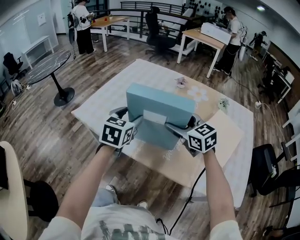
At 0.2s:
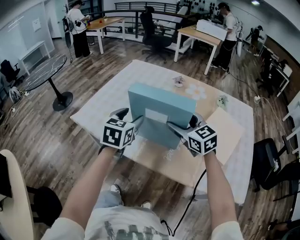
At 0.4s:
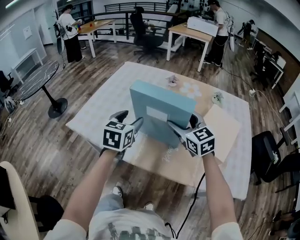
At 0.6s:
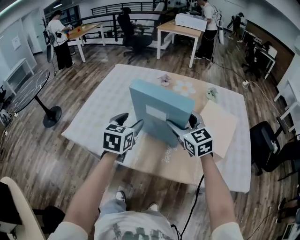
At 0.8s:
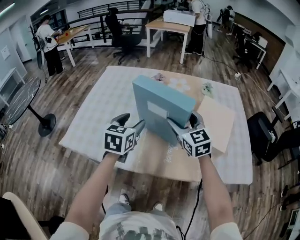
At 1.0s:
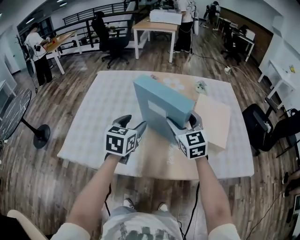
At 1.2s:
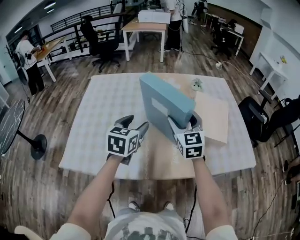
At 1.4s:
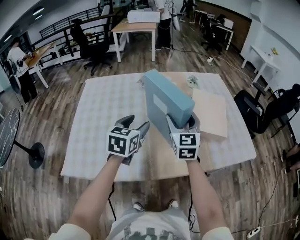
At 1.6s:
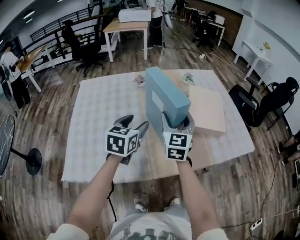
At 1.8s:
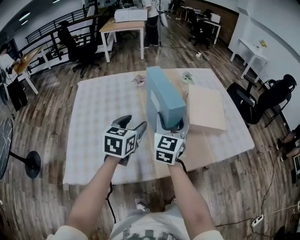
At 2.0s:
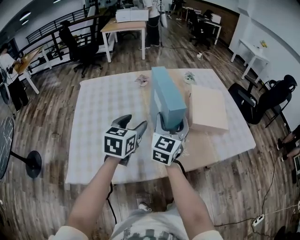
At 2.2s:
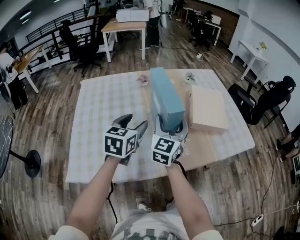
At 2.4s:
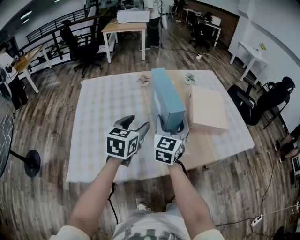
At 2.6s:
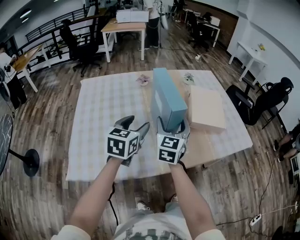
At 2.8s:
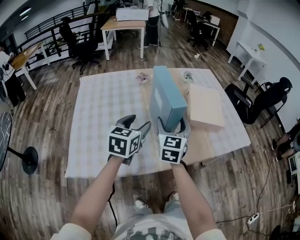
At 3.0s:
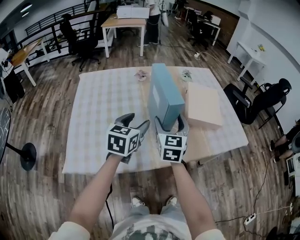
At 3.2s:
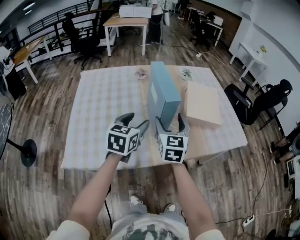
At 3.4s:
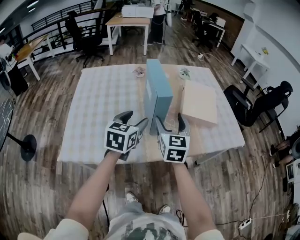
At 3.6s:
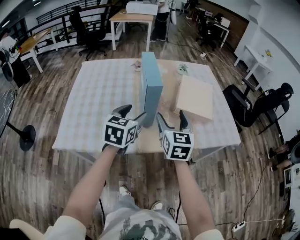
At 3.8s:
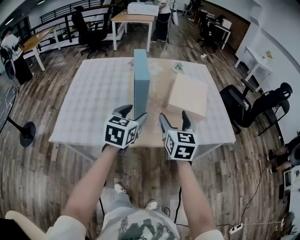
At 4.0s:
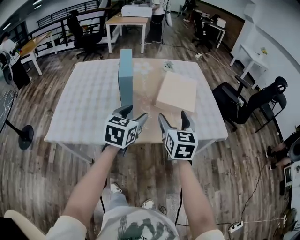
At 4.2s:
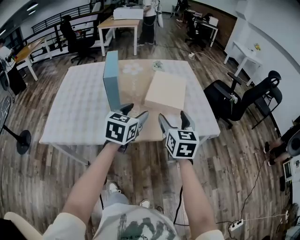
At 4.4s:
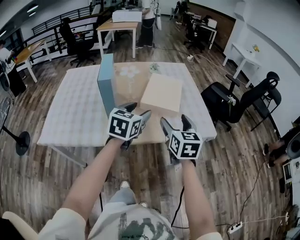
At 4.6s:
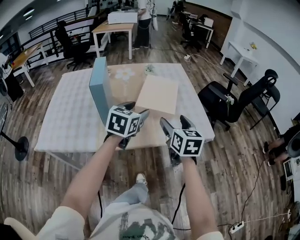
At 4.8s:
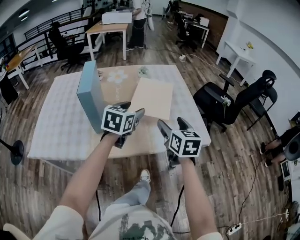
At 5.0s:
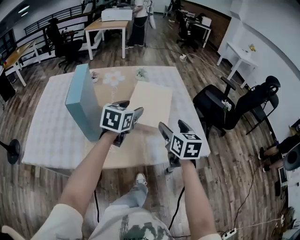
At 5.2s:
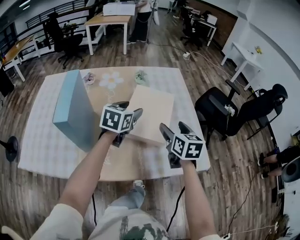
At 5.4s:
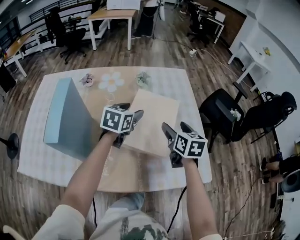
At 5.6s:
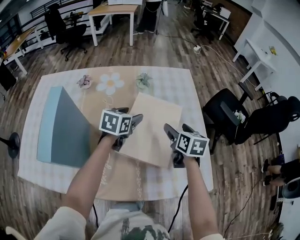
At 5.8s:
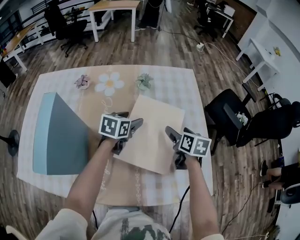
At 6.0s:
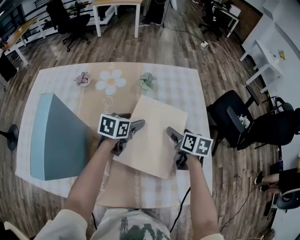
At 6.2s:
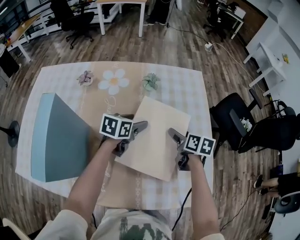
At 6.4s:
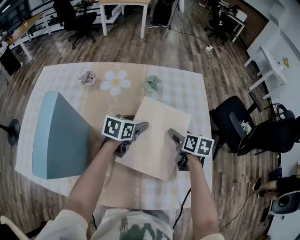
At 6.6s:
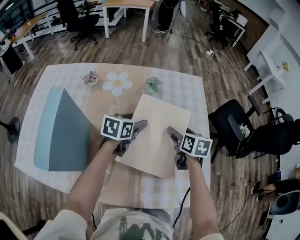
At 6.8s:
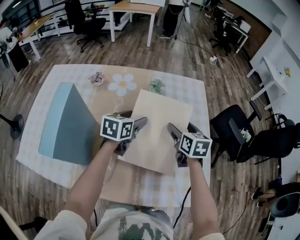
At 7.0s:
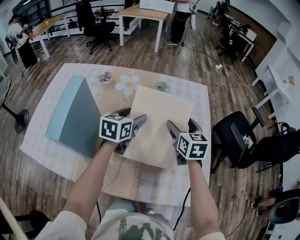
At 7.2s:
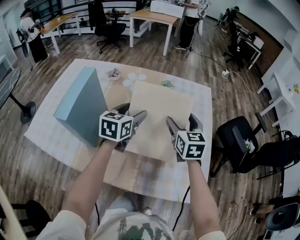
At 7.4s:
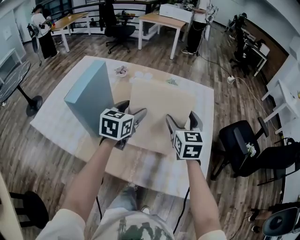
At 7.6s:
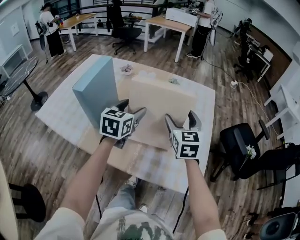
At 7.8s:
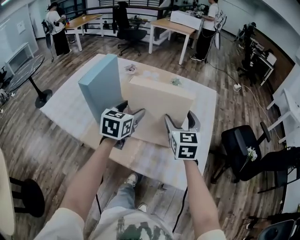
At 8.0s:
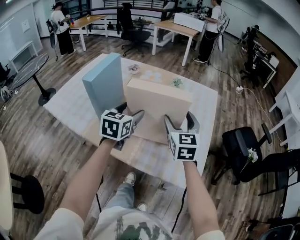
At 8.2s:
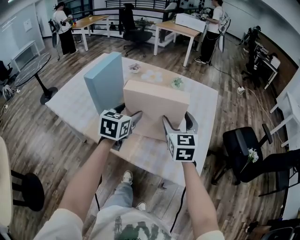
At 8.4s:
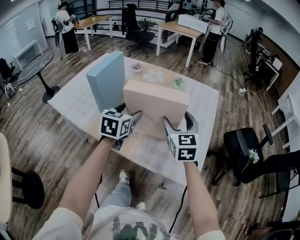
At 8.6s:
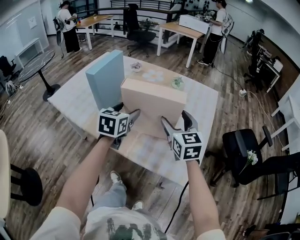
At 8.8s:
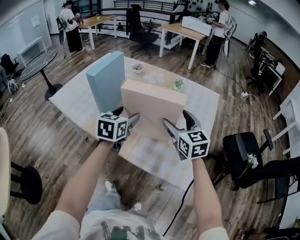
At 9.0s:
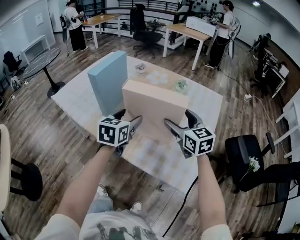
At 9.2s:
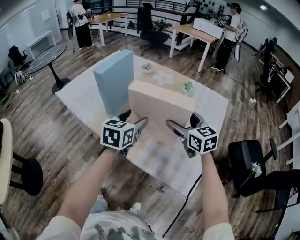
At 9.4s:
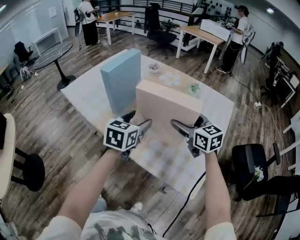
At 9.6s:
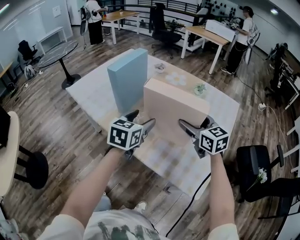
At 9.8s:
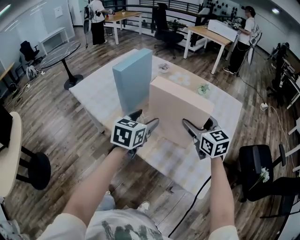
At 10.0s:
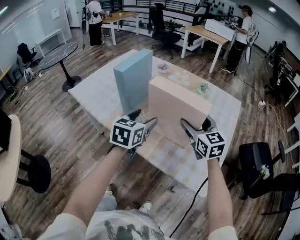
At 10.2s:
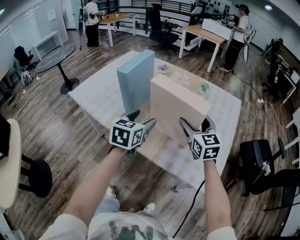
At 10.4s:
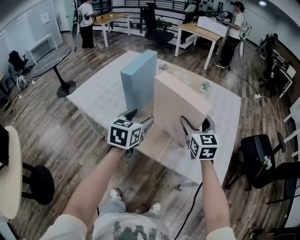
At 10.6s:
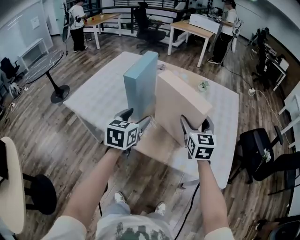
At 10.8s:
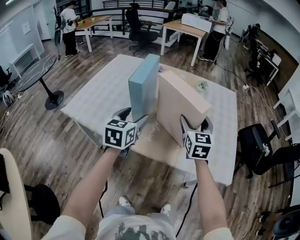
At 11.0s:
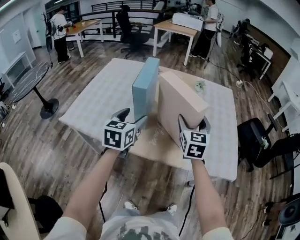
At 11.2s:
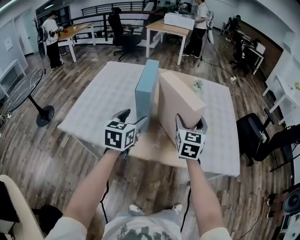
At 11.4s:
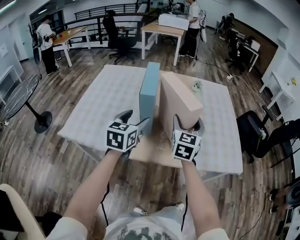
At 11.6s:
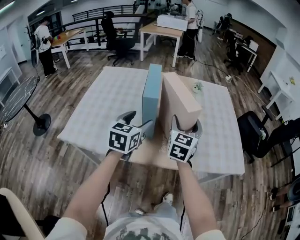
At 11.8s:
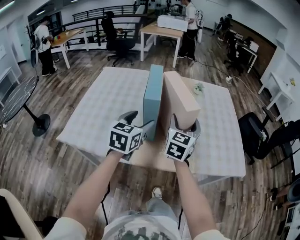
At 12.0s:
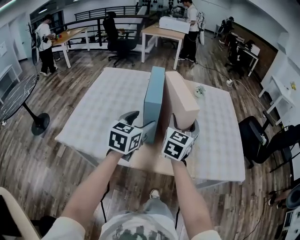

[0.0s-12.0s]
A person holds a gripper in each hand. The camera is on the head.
0.0s to 1.6s: The left gripper moves approximately 10 cm, and turns by about 40 degrees; the right gripper shifts by about 5 cm, and changes its angle by some 80 degrees.
1.6s to 3.0s: The right gripper heads backward, covering approximately 5 cm.
3.0s to 4.4s: Both grippers move to the right, some 30 cm.
4.4s to 6.0s: The grippers both shift forward and downward by about 40 cm. The left gripper swivels about 30 degrees; the right gripper changes its angle by roughly 40 degrees.
6.0s to 7.6s: The left gripper heads backward and upward, covering approximately 25 cm, and swivels roughly 40 degrees. The right gripper moves upward and backward, some 20 cm, and rotates around the line of its fingers by about 40 degrees, counterclockwise from behind.
7.6s to 9.0s: The left gripper heads backward, covering approximately 10 cm; the right gripper is displaced backward by approximately 5 cm, and rotates roughly 30 degrees.
9.0s to 10.4s: Both grippers move to the left, about 10 cm.
10.4s to 12.0s: The right gripper moves some 15 cm, and rotates about 50 degrees. The left gripper changes place by some 15 cm, and changes its angle by roughly 30 degrees.

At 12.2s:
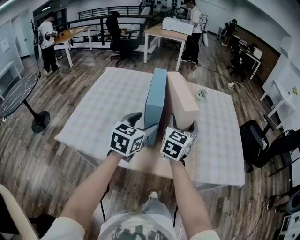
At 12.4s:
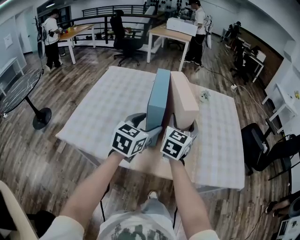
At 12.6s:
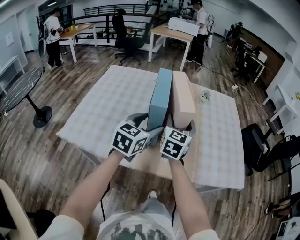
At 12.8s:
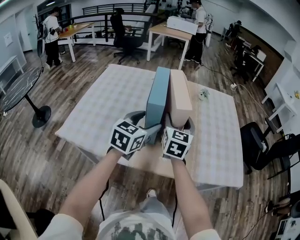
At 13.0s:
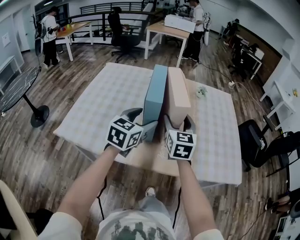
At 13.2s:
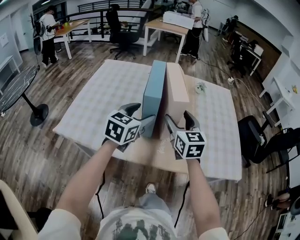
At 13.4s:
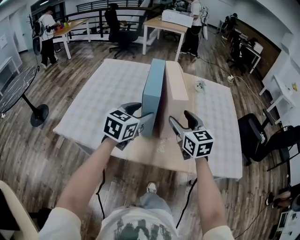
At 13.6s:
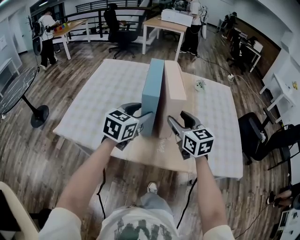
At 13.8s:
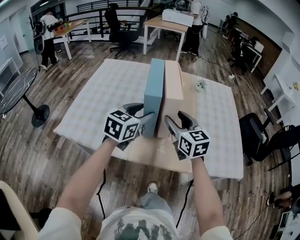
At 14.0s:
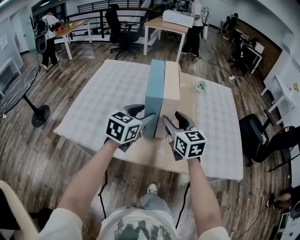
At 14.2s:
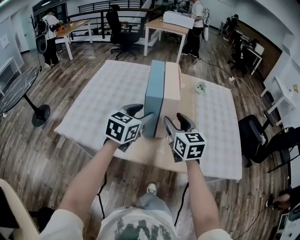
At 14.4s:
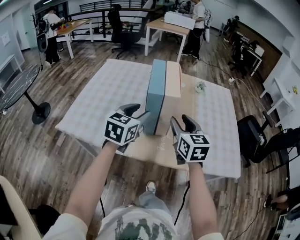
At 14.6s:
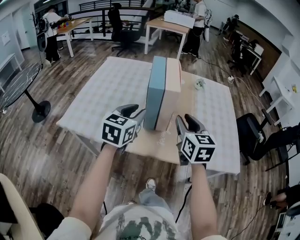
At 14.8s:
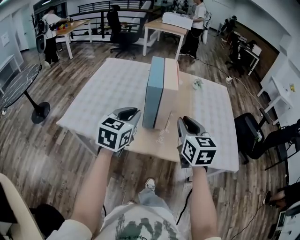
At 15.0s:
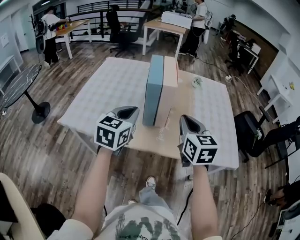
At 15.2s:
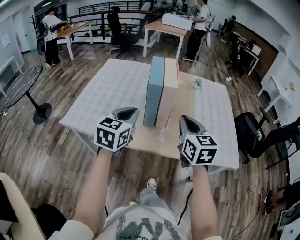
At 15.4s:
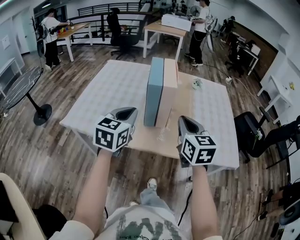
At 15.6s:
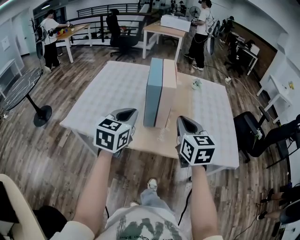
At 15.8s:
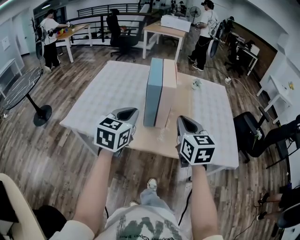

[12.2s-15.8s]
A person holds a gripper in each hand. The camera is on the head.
12.2s to 14.0s: The right gripper shifts by roughly 5 cm, and changes its angle by approximately 40 degrees.
14.0s to 15.8s: Both grippers move backward and upward, about 10 cm. The left gripper closes its fingers, while the right gripper closes up.

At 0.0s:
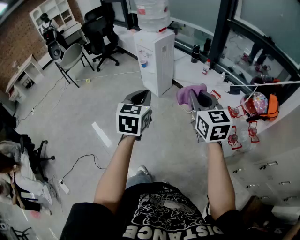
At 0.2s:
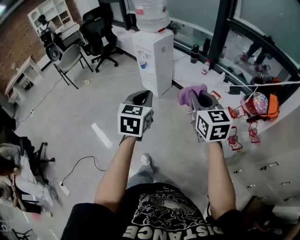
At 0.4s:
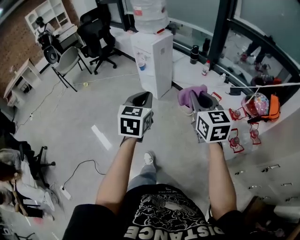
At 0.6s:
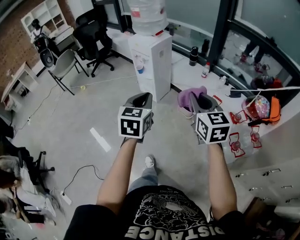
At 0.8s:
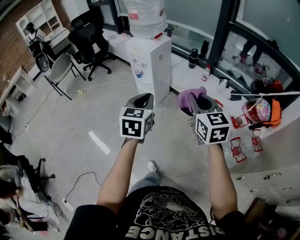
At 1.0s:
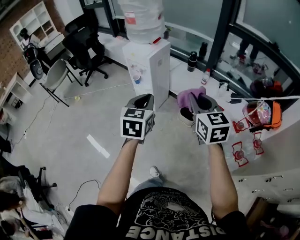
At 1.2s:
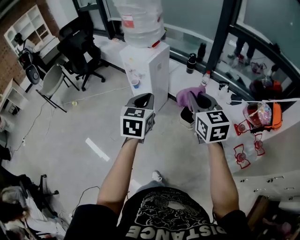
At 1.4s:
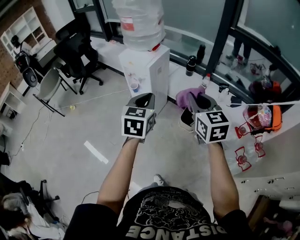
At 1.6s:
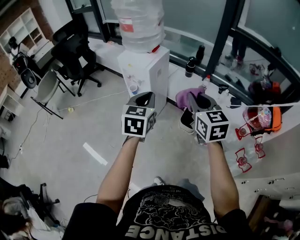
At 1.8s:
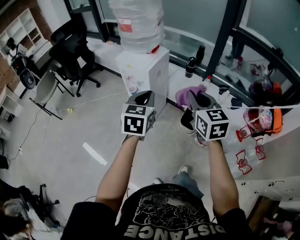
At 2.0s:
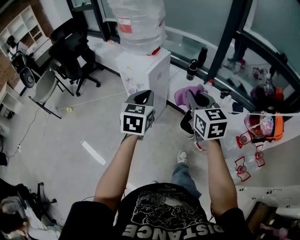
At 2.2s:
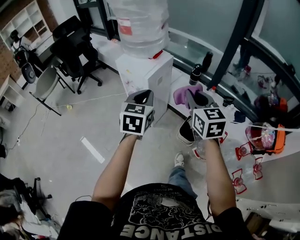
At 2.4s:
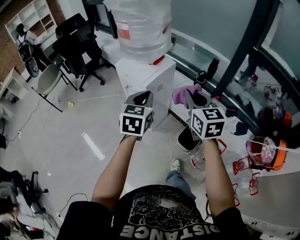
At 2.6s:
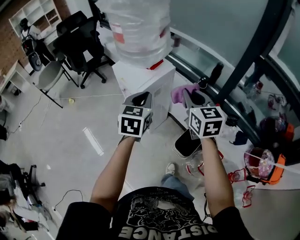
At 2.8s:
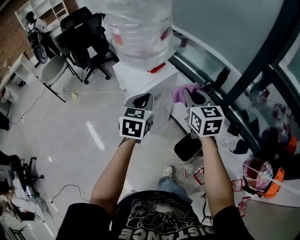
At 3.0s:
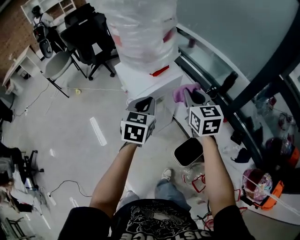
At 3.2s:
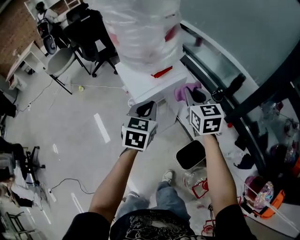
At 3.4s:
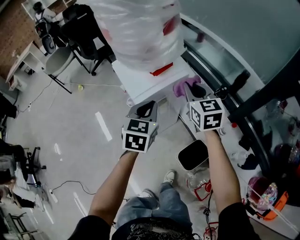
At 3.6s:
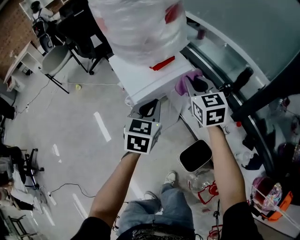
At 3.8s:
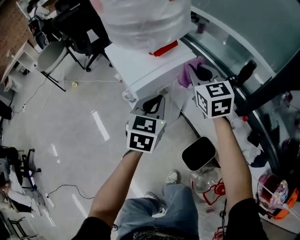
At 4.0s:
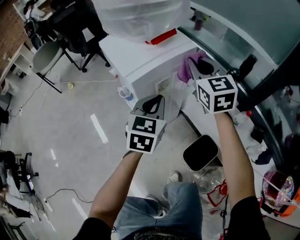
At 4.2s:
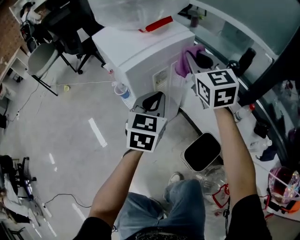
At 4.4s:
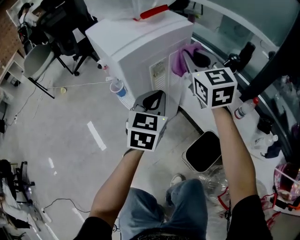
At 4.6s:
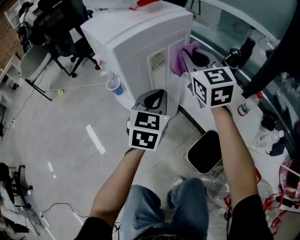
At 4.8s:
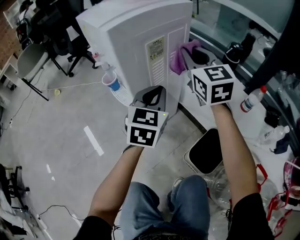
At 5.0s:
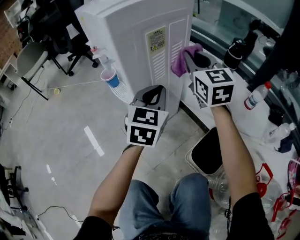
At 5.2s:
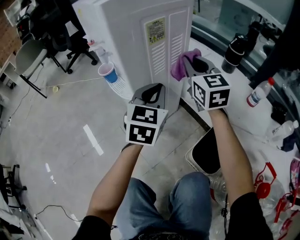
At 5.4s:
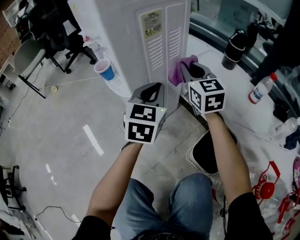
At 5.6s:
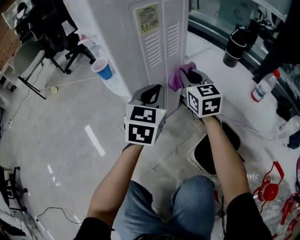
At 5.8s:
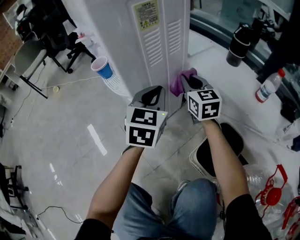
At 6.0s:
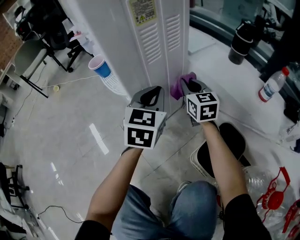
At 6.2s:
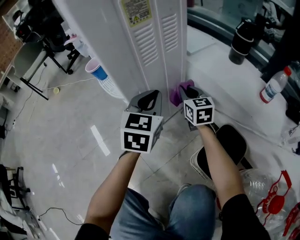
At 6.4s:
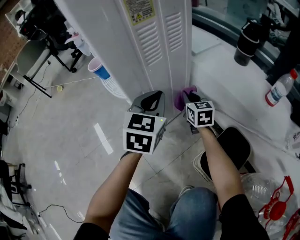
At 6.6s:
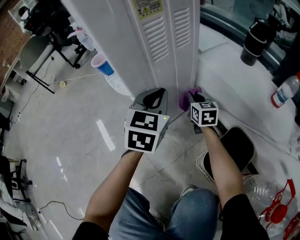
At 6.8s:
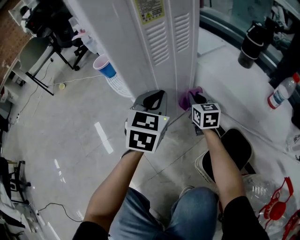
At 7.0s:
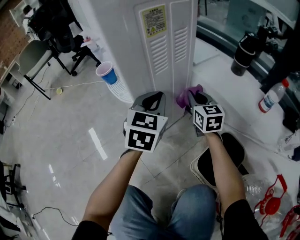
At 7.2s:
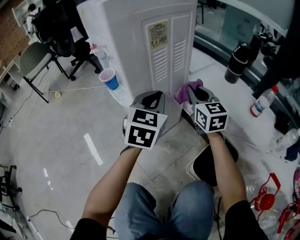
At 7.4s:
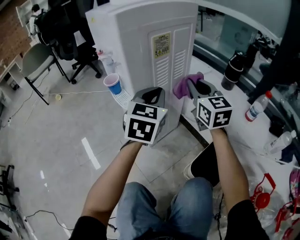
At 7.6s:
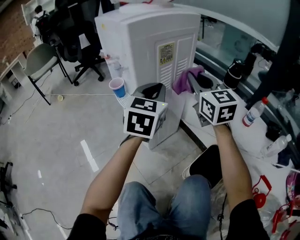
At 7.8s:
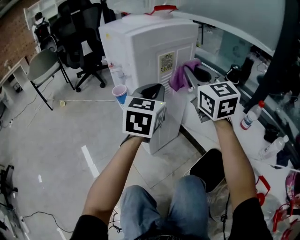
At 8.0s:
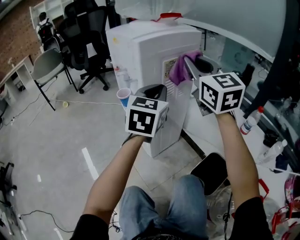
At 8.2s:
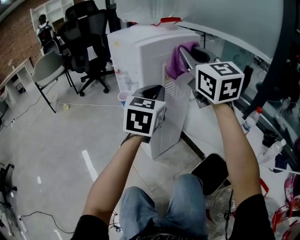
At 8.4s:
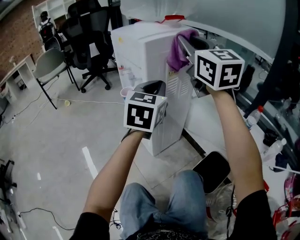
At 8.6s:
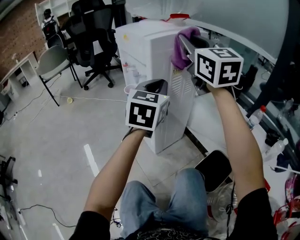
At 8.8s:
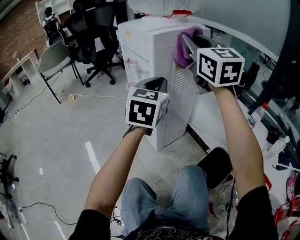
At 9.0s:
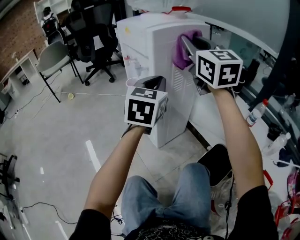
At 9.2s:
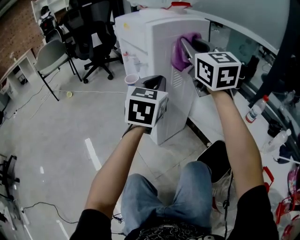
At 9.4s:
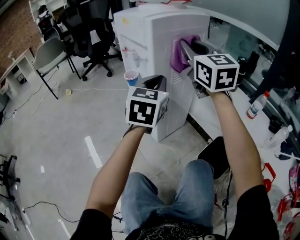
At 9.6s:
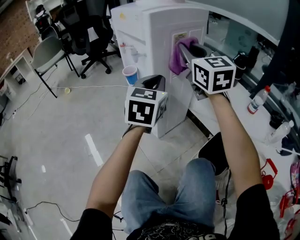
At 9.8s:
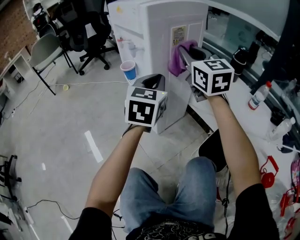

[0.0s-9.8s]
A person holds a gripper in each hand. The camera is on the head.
0.0s to 1.4s: Both grippers move forward, about 30 cm.
1.4s to 2.8s: The two grippers go approximately 30 cm forward.
2.8s to 4.2s: The left gripper goes roughly 25 cm downward. Meanwhile the right gripper travels downward and forward by about 20 cm.
4.2s to 5.6s: The two grippers go some 25 cm downward.
5.6s to 7.0s: The right gripper shifts approximately 10 cm downward.
7.0s to 8.4s: The right gripper travels upward by roughly 40 cm, and swivels approximately 30 degrees. The left gripper is displaced upward by roughly 20 cm.
8.4s to 9.8s: The right gripper is displaced downward by some 15 cm, while the left gripper goes roughly 10 cm downward.
